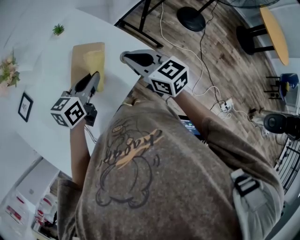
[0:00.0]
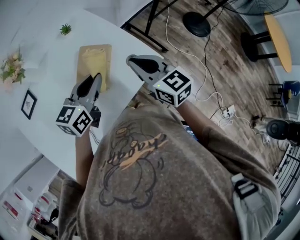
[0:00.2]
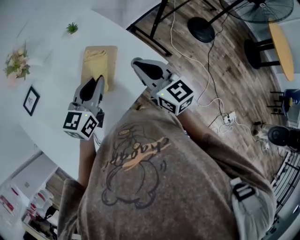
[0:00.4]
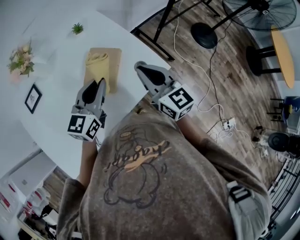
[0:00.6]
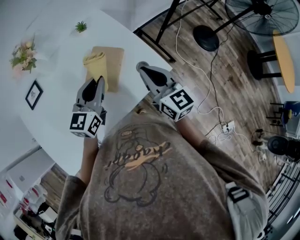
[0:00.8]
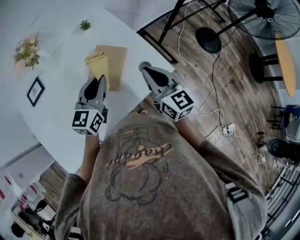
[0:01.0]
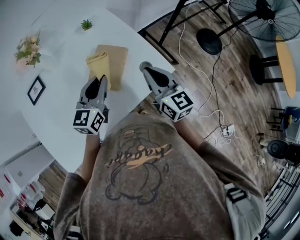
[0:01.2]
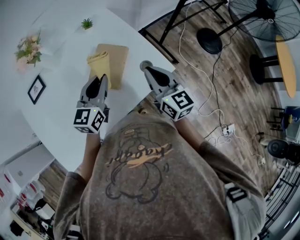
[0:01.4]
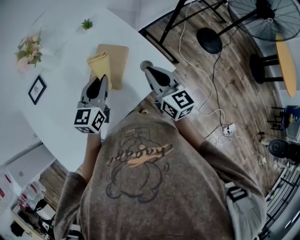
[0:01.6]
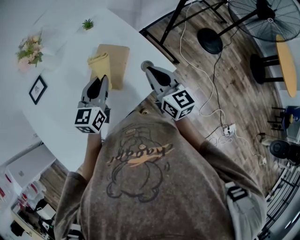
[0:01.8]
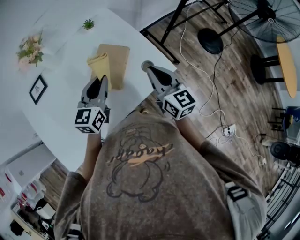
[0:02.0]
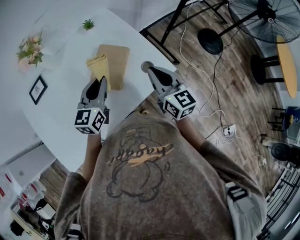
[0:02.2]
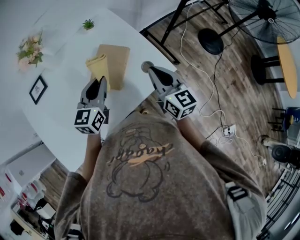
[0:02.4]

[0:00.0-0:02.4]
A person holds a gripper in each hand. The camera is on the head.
0:00.0 to 0:01.2: The left gripper goes about 5 cm to the left, and turns by about 30 degrees.
0:01.2 to 0:02.4: The grippers move only a little.

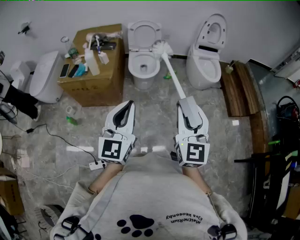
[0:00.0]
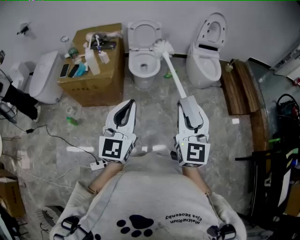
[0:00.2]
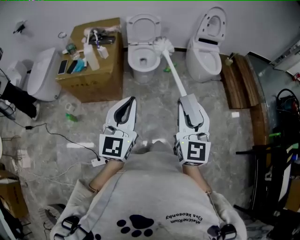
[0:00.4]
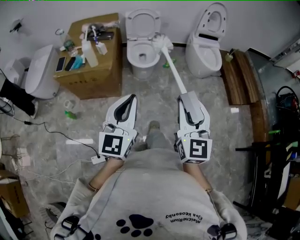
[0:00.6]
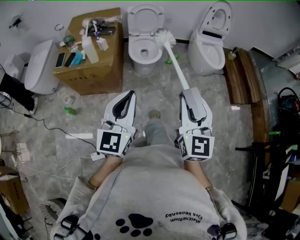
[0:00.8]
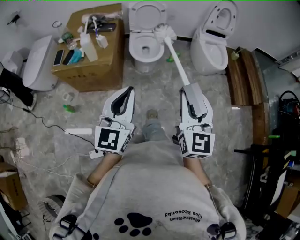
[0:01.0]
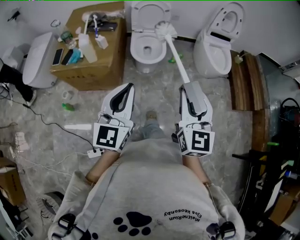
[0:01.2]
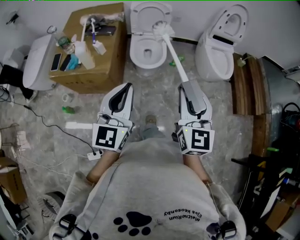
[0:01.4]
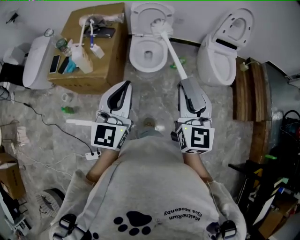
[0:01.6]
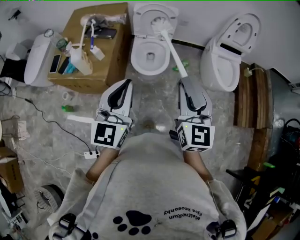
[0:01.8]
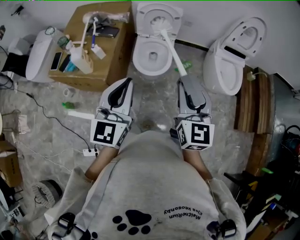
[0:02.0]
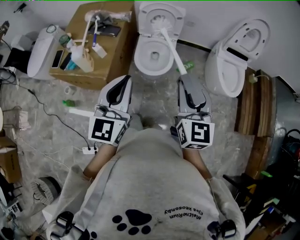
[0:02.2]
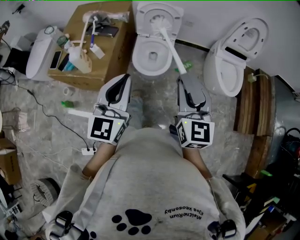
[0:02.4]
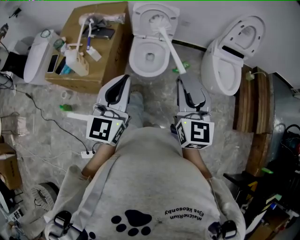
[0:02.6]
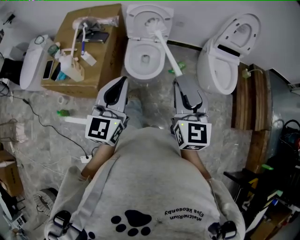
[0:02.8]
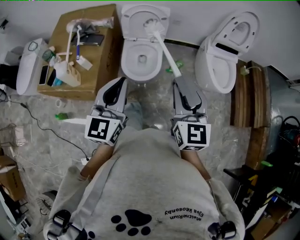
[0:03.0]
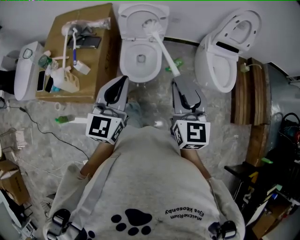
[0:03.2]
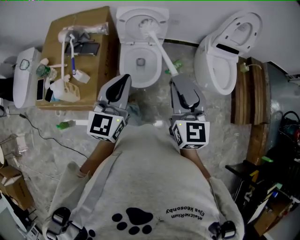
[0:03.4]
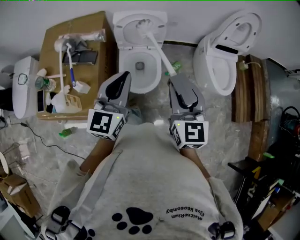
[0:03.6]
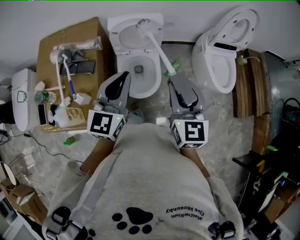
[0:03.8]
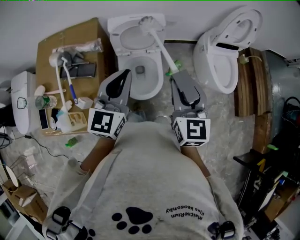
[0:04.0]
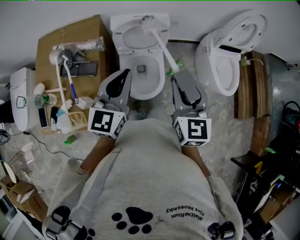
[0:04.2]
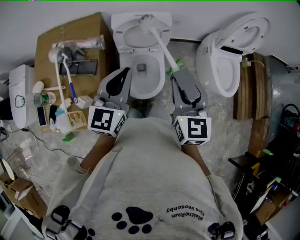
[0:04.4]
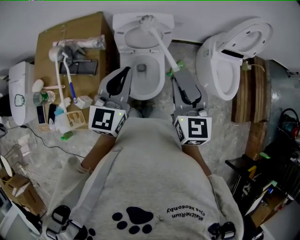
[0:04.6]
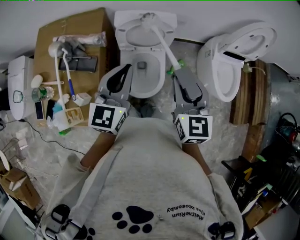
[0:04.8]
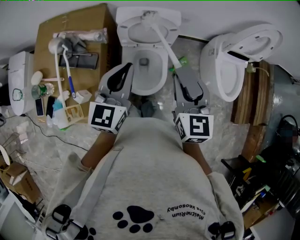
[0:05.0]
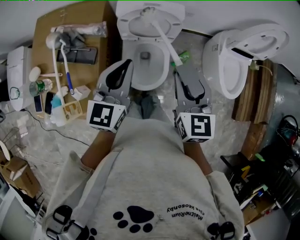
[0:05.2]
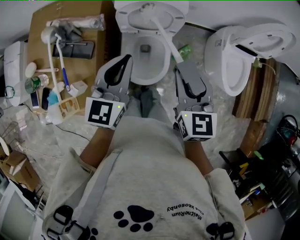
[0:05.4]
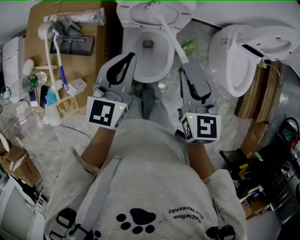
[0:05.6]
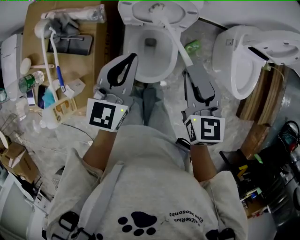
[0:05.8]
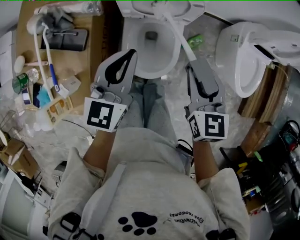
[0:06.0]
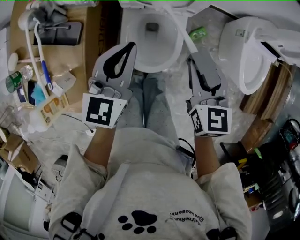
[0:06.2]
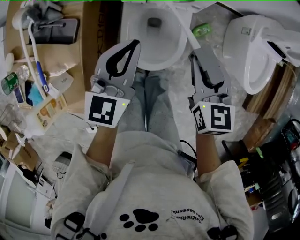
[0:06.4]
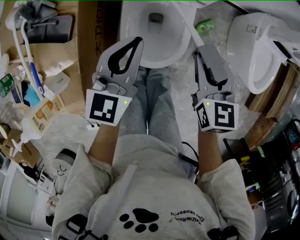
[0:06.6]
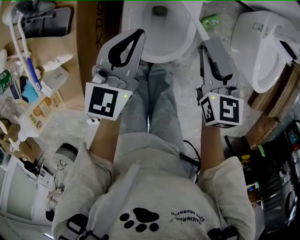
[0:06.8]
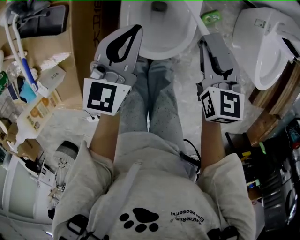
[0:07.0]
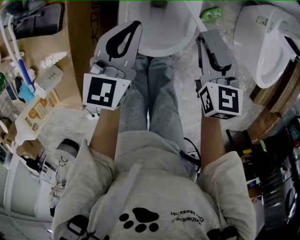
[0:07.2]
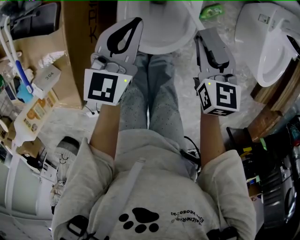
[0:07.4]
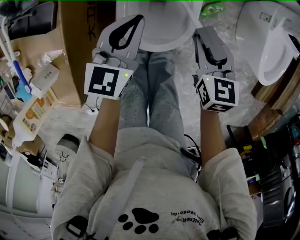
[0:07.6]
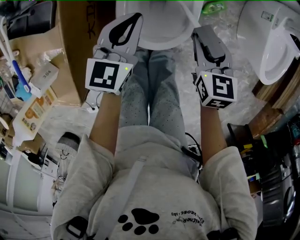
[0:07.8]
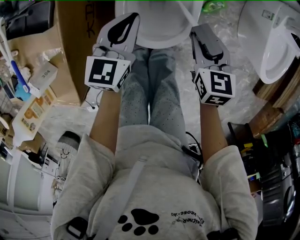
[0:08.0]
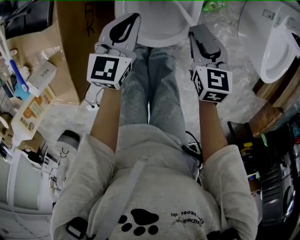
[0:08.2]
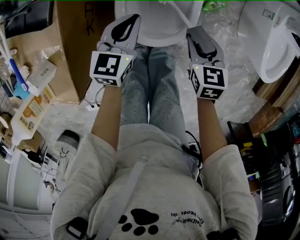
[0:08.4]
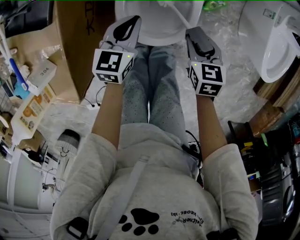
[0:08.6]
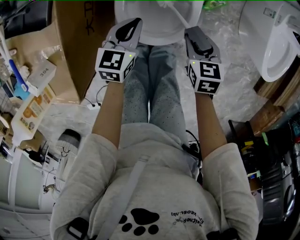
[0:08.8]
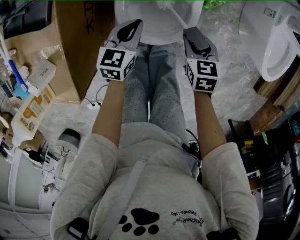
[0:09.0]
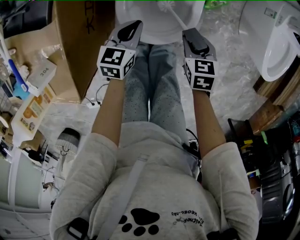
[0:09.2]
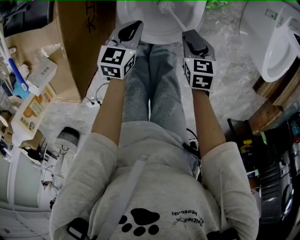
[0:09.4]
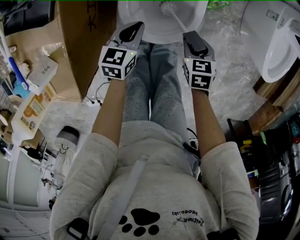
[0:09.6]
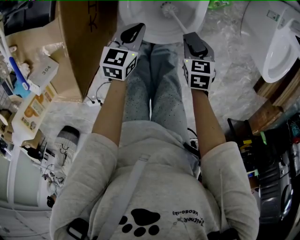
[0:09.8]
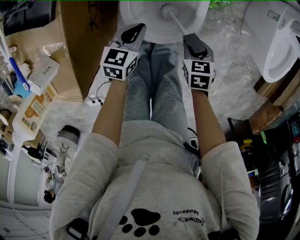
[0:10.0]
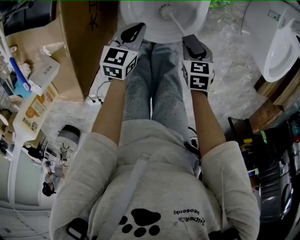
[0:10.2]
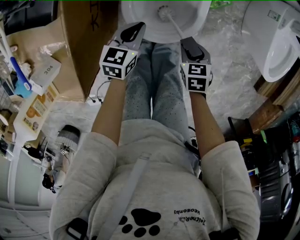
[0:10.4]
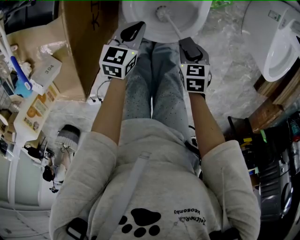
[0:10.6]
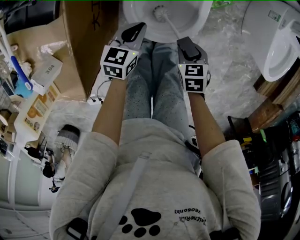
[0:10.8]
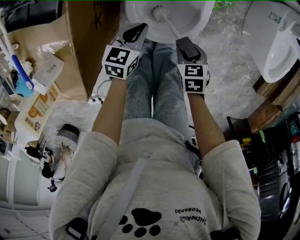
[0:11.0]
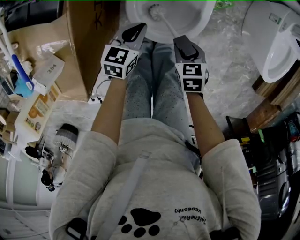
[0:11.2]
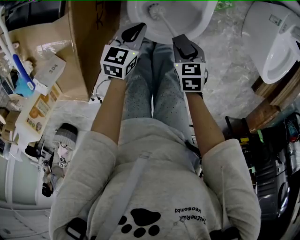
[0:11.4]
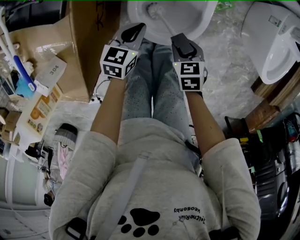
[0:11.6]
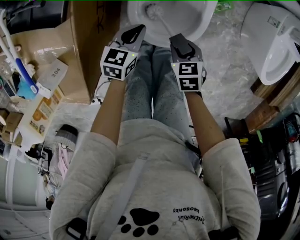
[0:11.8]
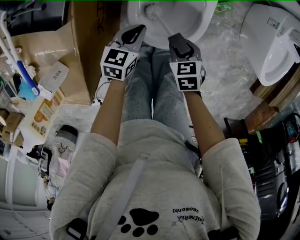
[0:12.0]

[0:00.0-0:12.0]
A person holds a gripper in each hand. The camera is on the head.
0:00.0 to 0:01.6: The grippers both shift forward by about 25 cm.
0:01.6 to 0:03.0: The two grippers go roughly 15 cm forward.
0:03.0 to 0:04.4: The left gripper travels forward by roughly 30 cm. Meanwhile the right gripper shifts about 25 cm forward and to the left.
0:04.4 to 0:06.0: Both grippers travel together downward and forward, approximately 20 cm.
0:06.0 to 0:07.6: The grippers both shift downward by roughly 20 cm.
0:07.6 to 0:09.0: The grippers both shift downward and backward by approximately 15 cm.
0:09.0 to 0:10.4: The right gripper is displaced backward by roughly 5 cm.
0:10.4 to 0:12.0: The right gripper heads to the left, covering some 10 cm.

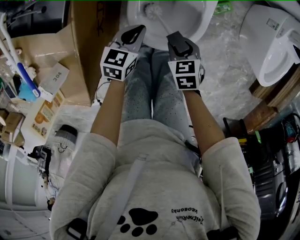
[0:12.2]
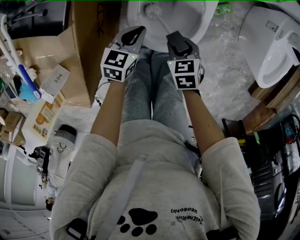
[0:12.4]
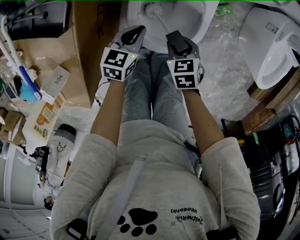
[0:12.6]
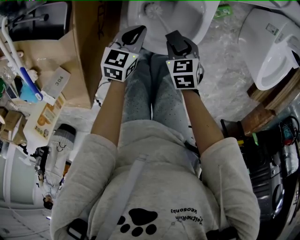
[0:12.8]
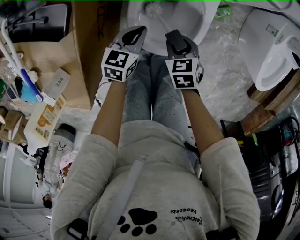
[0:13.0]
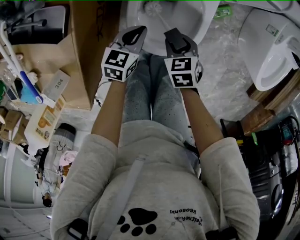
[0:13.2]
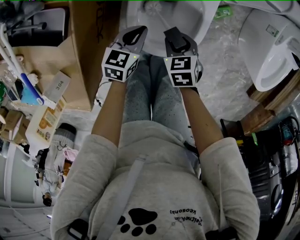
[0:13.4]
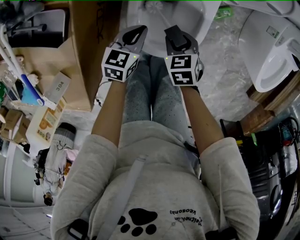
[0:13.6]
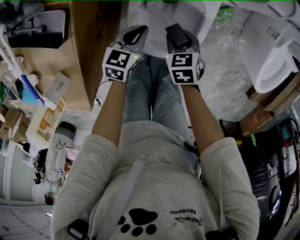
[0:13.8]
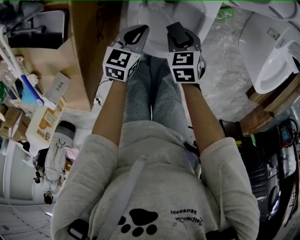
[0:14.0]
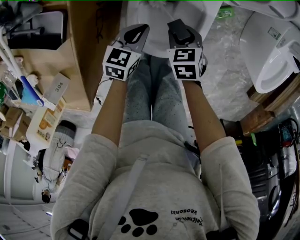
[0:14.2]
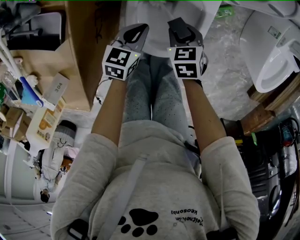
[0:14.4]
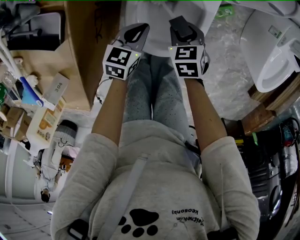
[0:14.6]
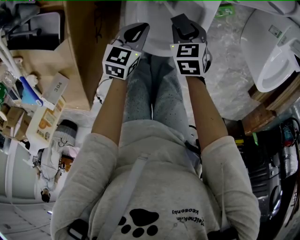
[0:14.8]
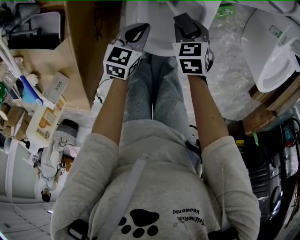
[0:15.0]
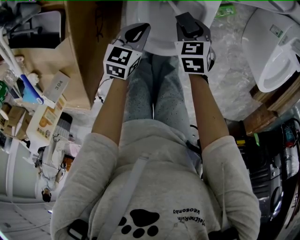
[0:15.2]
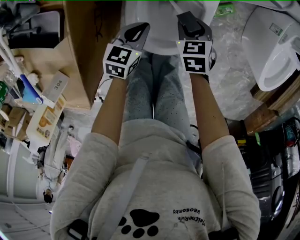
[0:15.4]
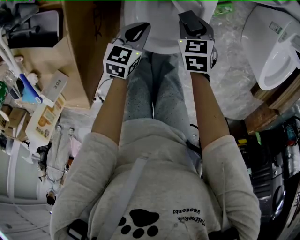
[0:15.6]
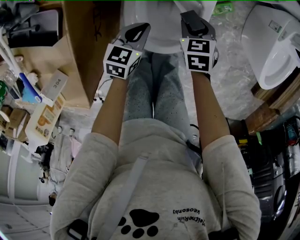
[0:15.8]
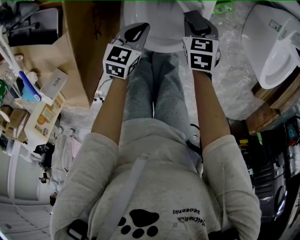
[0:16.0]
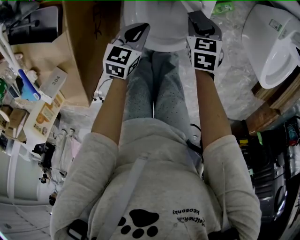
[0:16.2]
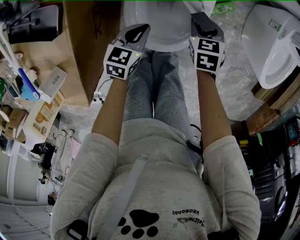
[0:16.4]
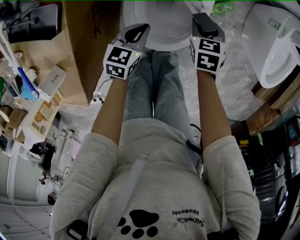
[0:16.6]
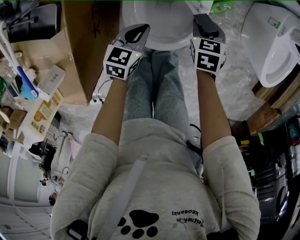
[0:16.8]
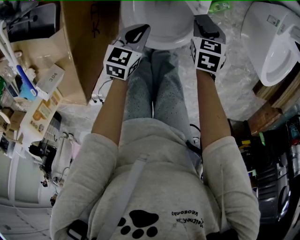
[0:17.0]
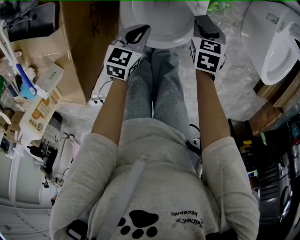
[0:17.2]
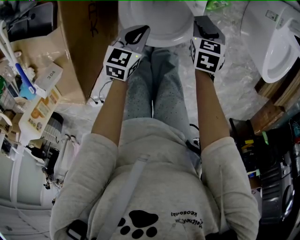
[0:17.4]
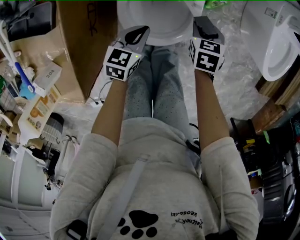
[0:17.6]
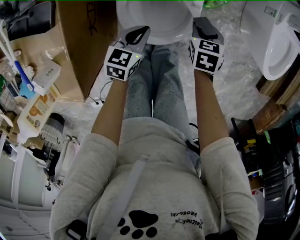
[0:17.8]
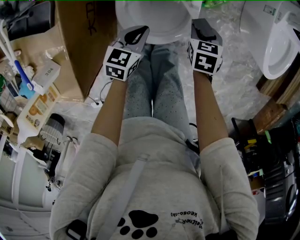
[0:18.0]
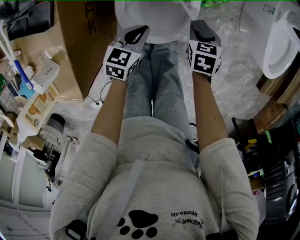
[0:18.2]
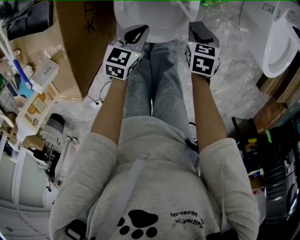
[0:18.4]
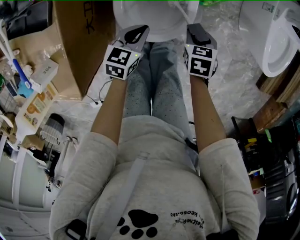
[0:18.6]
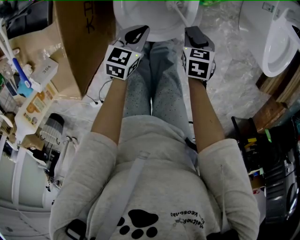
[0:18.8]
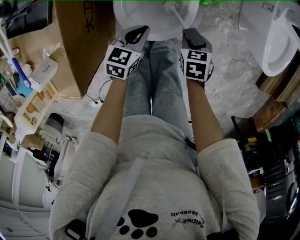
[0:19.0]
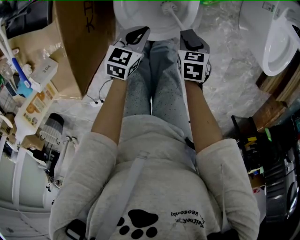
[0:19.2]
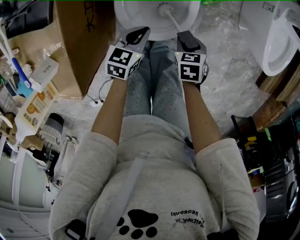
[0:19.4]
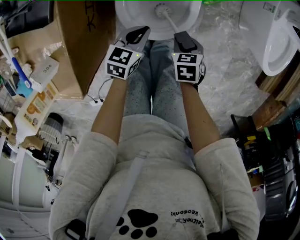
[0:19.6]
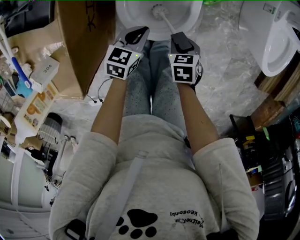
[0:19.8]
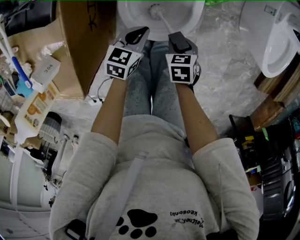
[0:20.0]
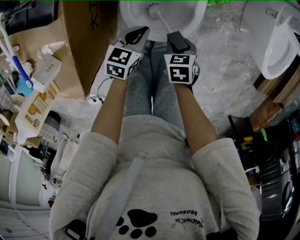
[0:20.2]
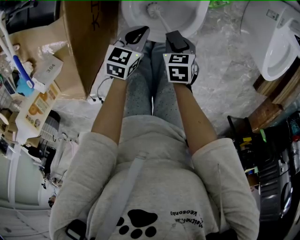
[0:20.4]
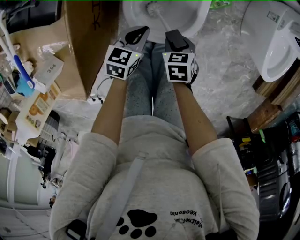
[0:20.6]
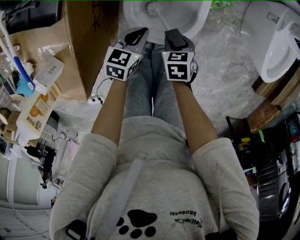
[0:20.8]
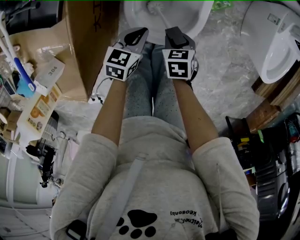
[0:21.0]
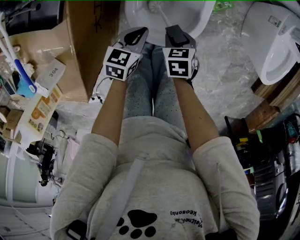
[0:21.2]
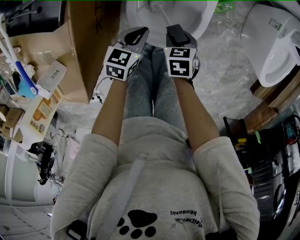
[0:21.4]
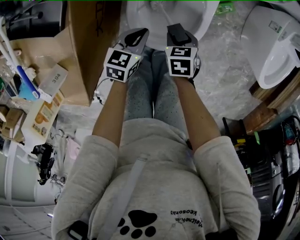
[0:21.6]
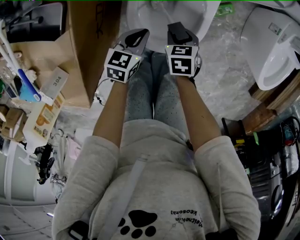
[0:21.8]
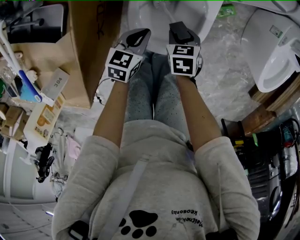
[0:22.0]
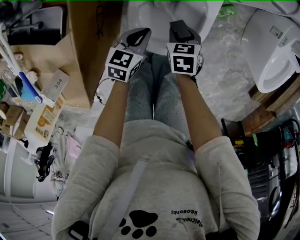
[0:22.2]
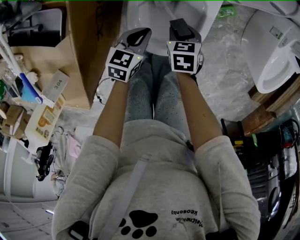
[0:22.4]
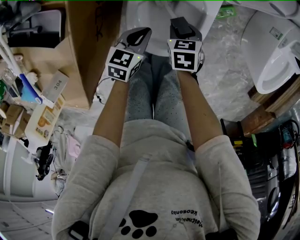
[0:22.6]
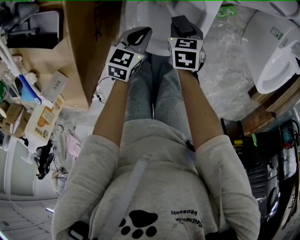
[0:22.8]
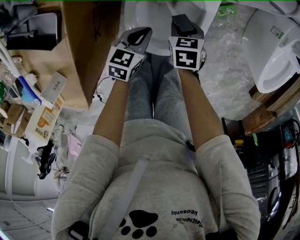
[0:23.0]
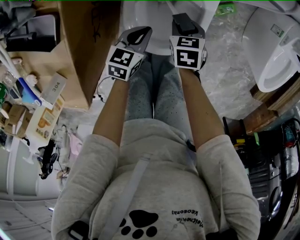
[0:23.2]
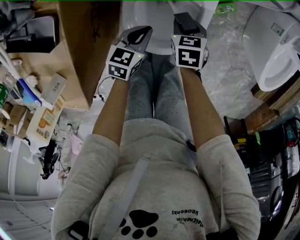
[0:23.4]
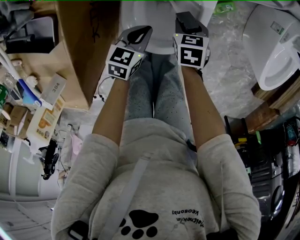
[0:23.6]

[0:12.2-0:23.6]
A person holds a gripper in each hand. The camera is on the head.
0:12.2 to 0:13.6: The right gripper is displaced forward by about 5 cm.
0:13.6 to 0:15.0: The right gripper goes some 5 cm forward.
0:15.0 to 0:16.4: The right gripper moves to the right, roughly 5 cm.
0:16.4 to 0:17.8: The right gripper goes some 5 cm to the right. The left gripper ends up about 5 cm from where it was.
0:17.8 to 0:19.4: The right gripper is displaced backward by about 10 cm.
0:19.4 to 0:20.8: The right gripper travels to the left by roughly 10 cm.
0:20.8 to 0:22.2: The left gripper moves forward, about 5 cm, while the right gripper is displaced forward by about 10 cm.
0:22.2 to 0:23.6: The right gripper ends up some 5 cm from where it was.
